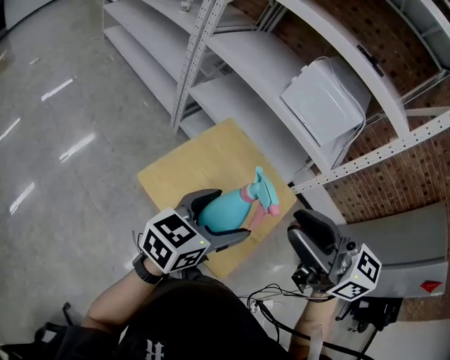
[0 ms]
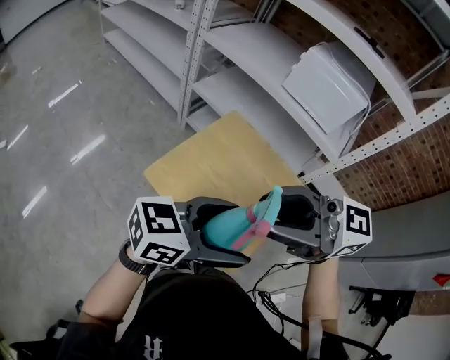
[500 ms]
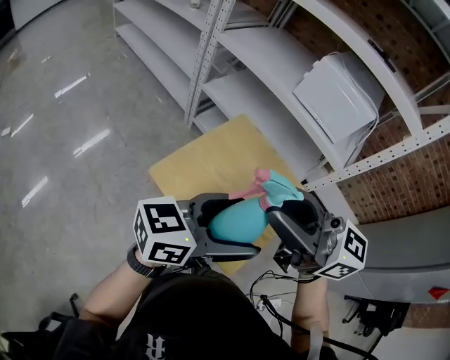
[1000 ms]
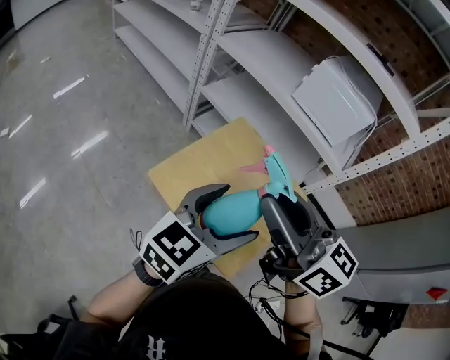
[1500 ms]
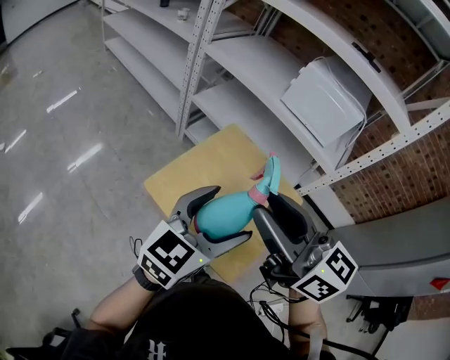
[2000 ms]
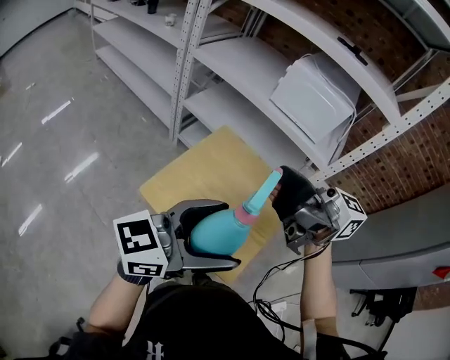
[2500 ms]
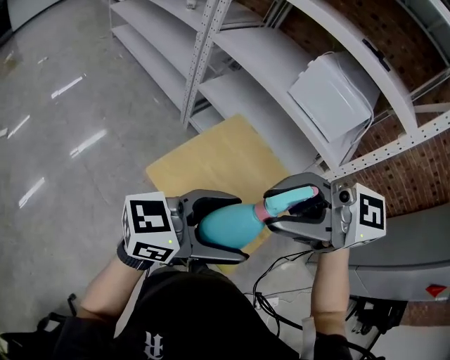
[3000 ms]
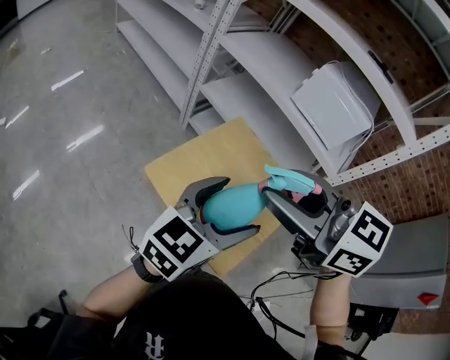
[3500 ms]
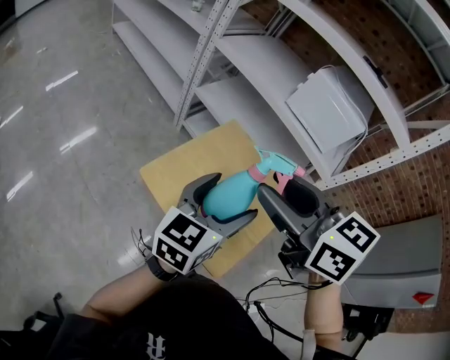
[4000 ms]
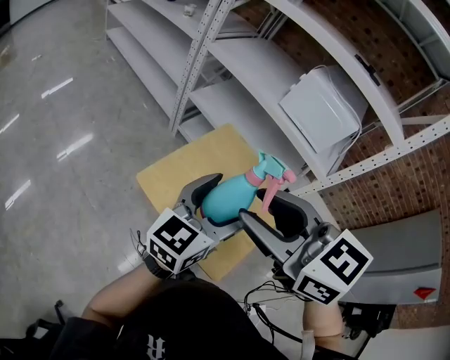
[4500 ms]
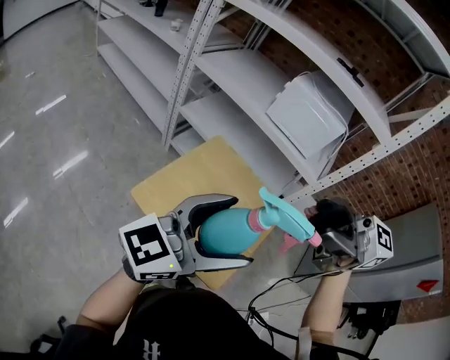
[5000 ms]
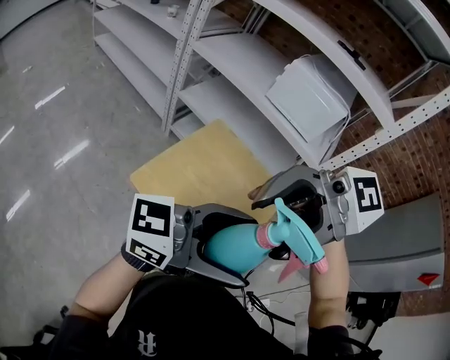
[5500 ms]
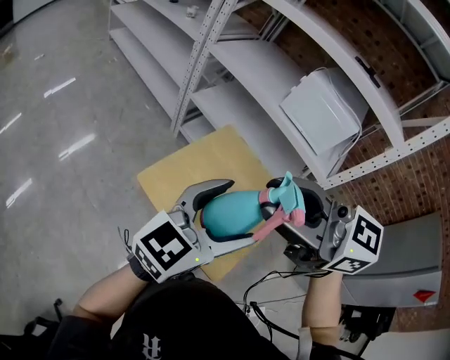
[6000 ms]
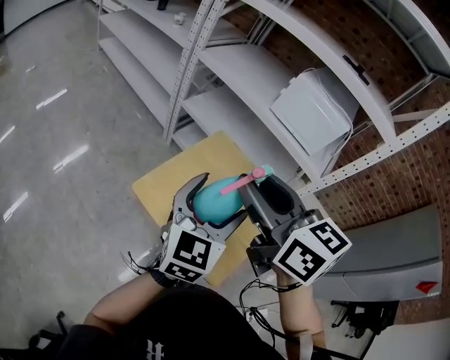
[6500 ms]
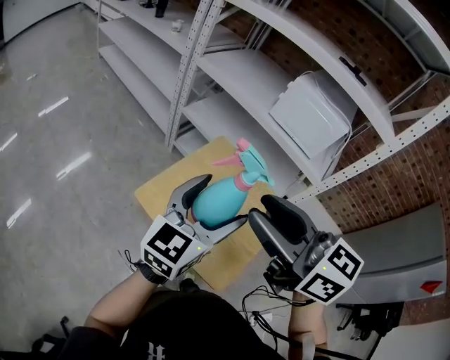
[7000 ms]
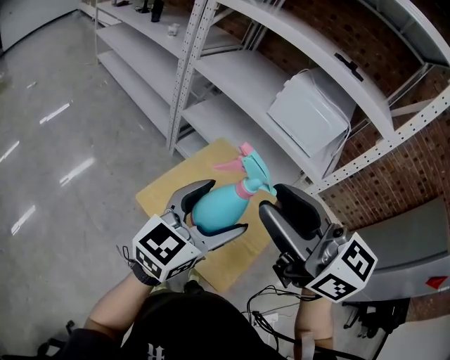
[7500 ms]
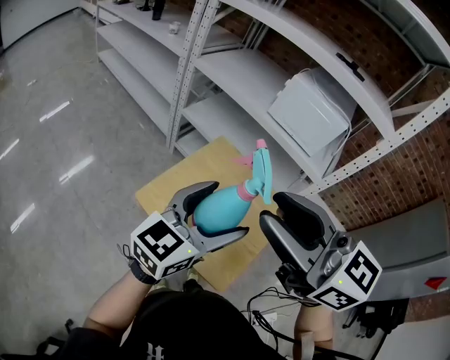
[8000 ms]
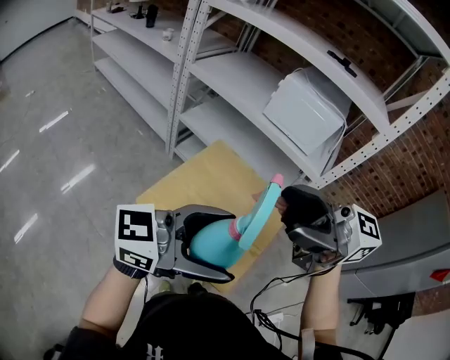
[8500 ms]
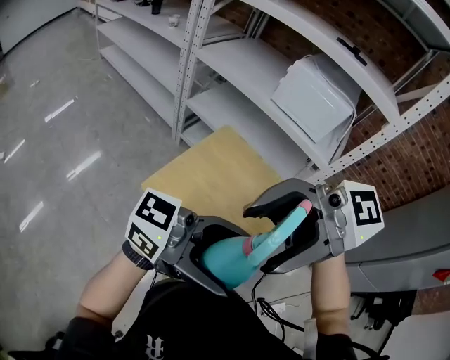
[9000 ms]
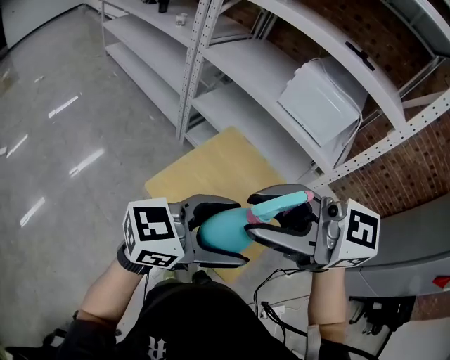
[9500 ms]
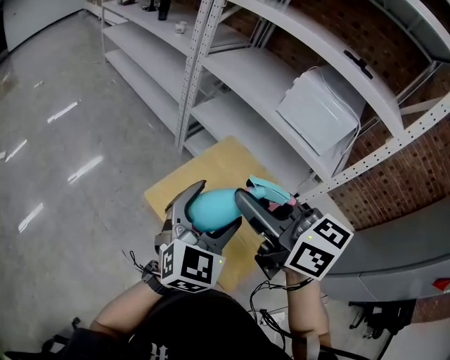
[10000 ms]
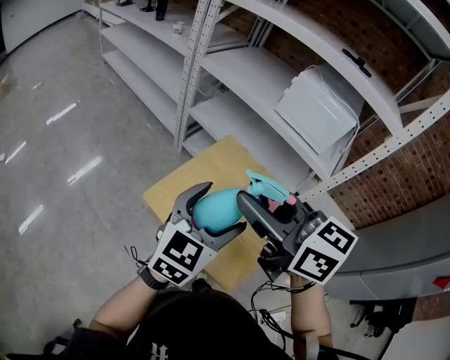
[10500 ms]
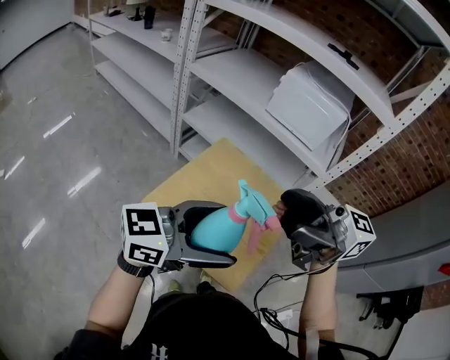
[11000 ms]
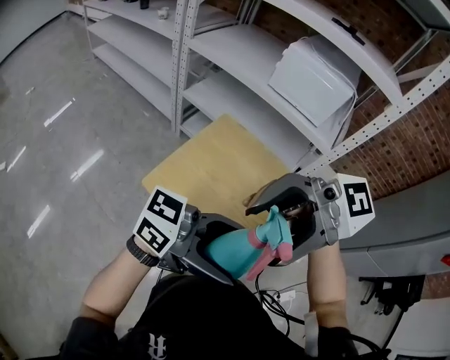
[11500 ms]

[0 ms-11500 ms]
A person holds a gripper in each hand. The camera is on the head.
0 ms to 2000 ms: The right gripper moves roughly 5 cm.
2000 ms to 4000 ms: The right gripper swivels about 20 degrees, and opens, then closes again.
4000 ms to 6000 ms: Both grippers travel together upward, roughly 5 cm. The right gripper rotates some 30 degrees. The left gripper changes its angle by about 20 degrees.
6000 ms to 7500 ms: The right gripper changes its angle by about 20 degrees.
7500 ms to 9500 ms: The right gripper turns by some 30 degrees, and opens, then closes again. Meanwhile the left gripper changes its angle by some 30 degrees.
9500 ms to 11500 ms: The right gripper changes its angle by roughly 30 degrees, and opens up, while the left gripper turns by roughly 40 degrees.

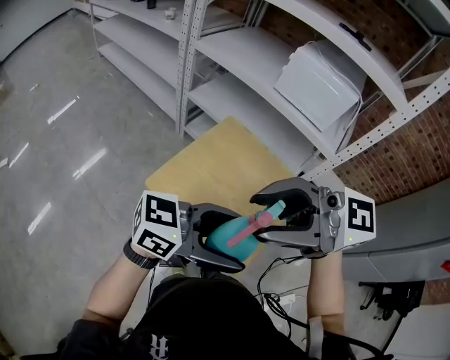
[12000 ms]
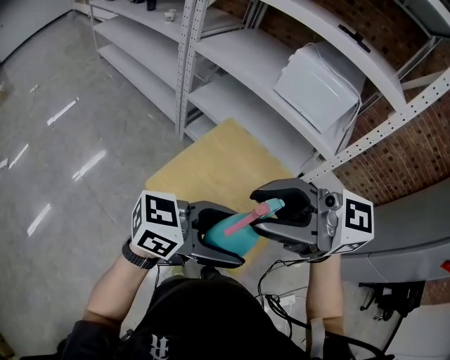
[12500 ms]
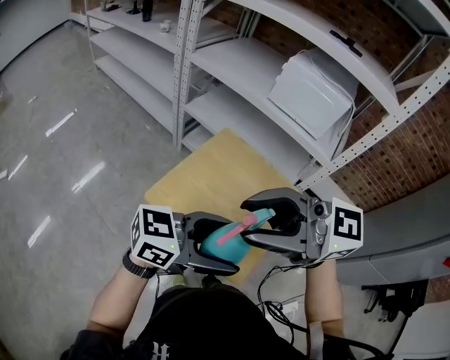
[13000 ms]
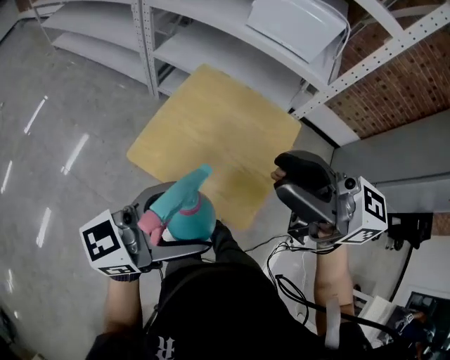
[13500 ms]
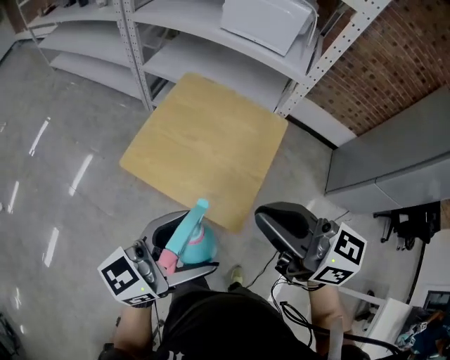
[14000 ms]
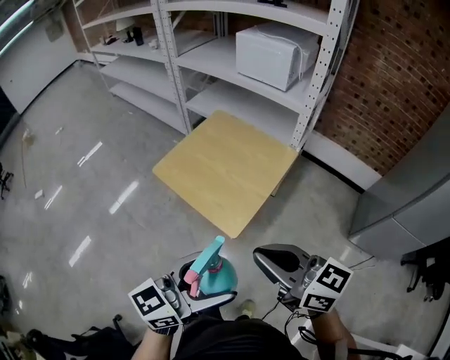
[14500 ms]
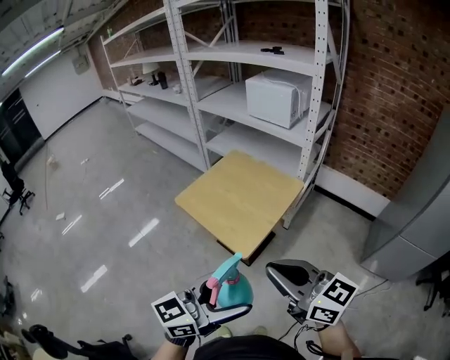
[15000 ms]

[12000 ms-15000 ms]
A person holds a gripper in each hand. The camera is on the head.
12000 ms to 13500 ms: The left gripper shifts by some 10 cm, and changes its angle by roughly 20 degrees. Meanwhile the right gripper moves approximately 5 cm, and swivels roughly 30 degrees.
13500 ms to 15000 ms: The pair of grippers is taken approximately 40 cm. The right gripper closes up.

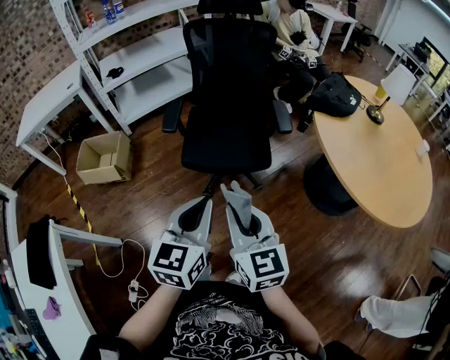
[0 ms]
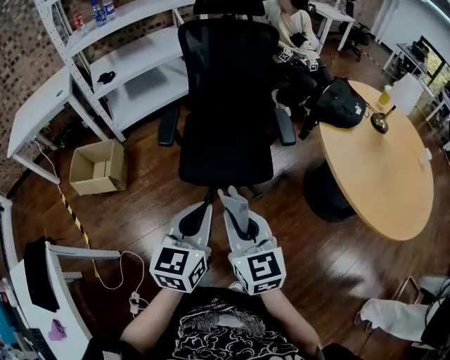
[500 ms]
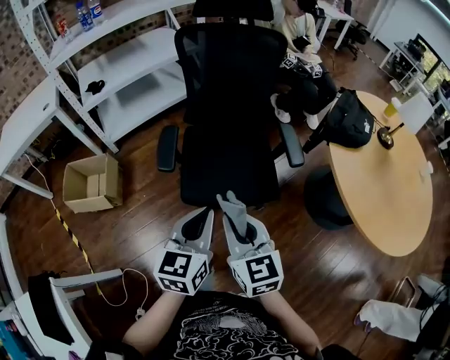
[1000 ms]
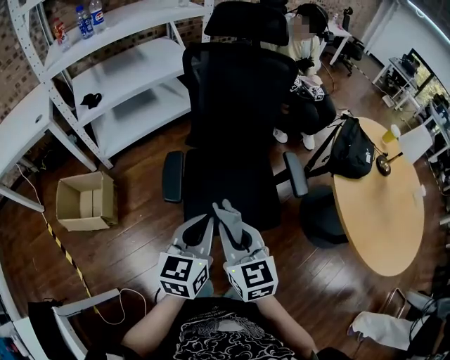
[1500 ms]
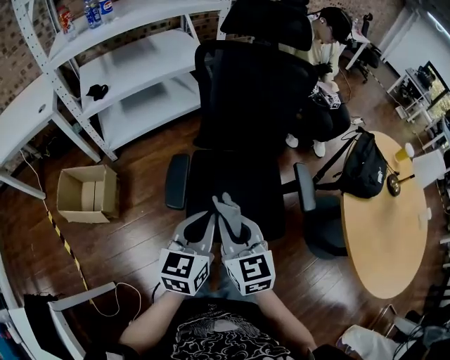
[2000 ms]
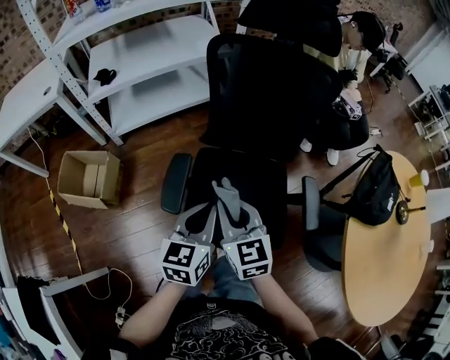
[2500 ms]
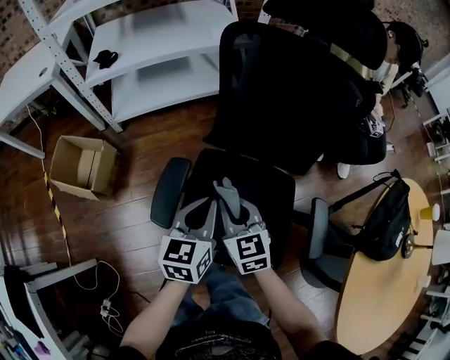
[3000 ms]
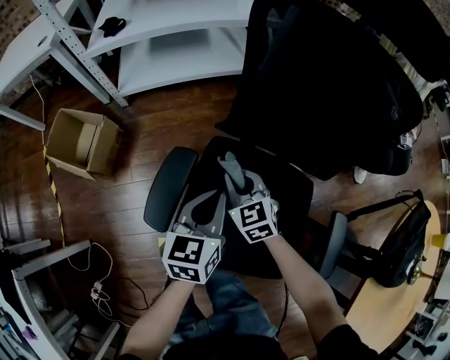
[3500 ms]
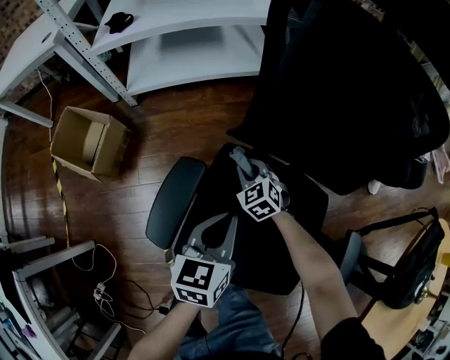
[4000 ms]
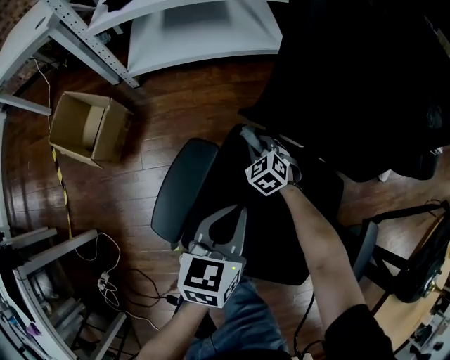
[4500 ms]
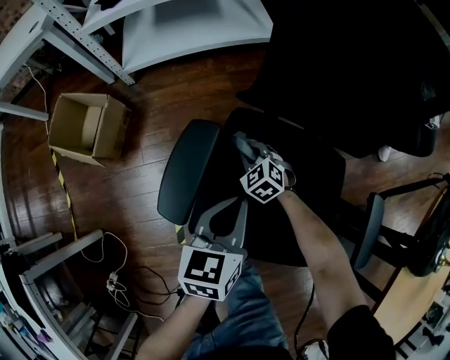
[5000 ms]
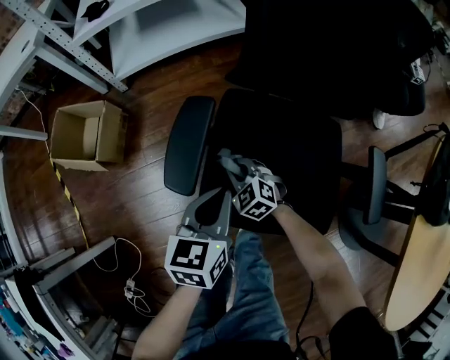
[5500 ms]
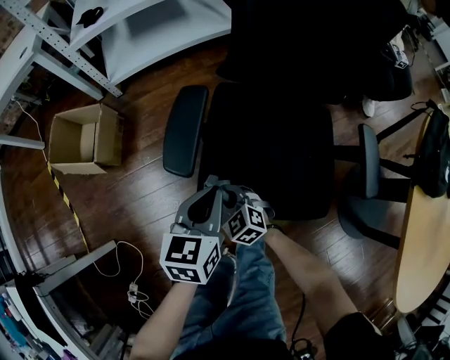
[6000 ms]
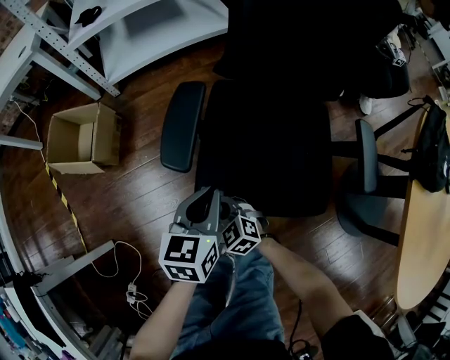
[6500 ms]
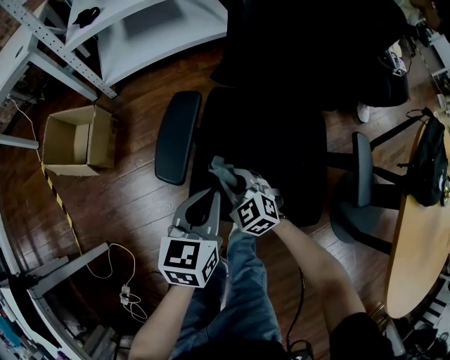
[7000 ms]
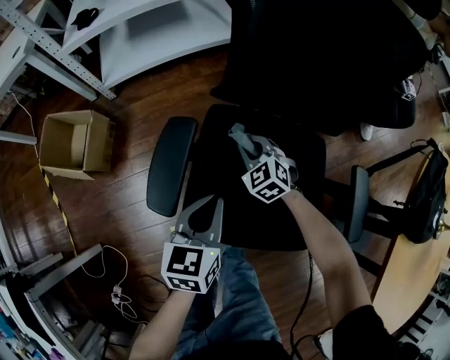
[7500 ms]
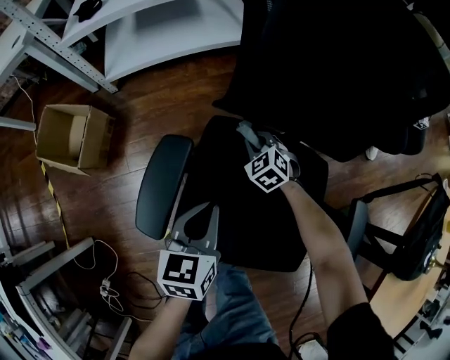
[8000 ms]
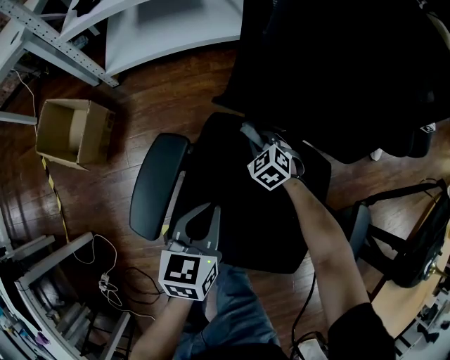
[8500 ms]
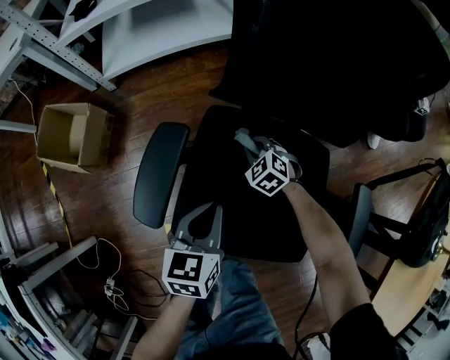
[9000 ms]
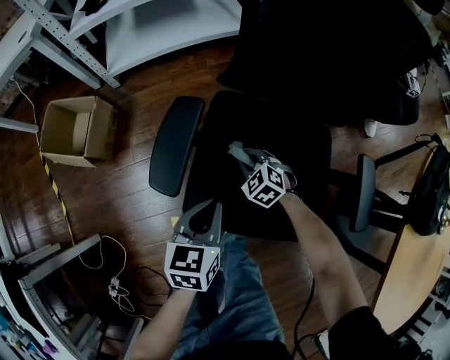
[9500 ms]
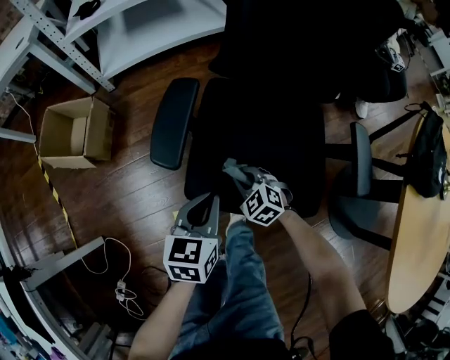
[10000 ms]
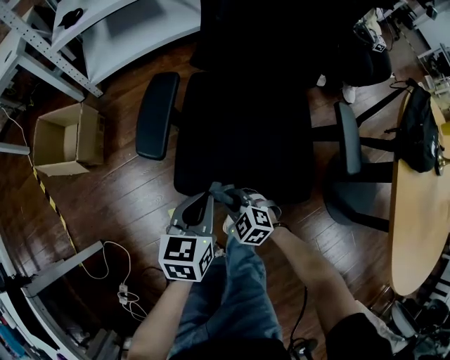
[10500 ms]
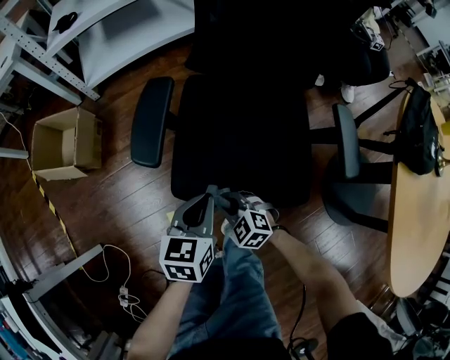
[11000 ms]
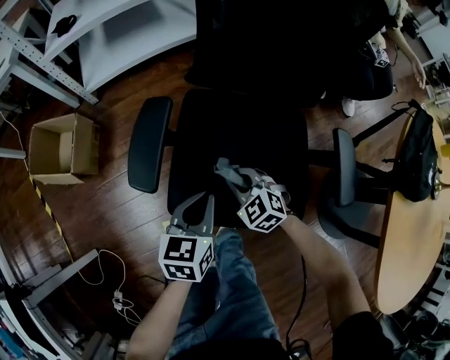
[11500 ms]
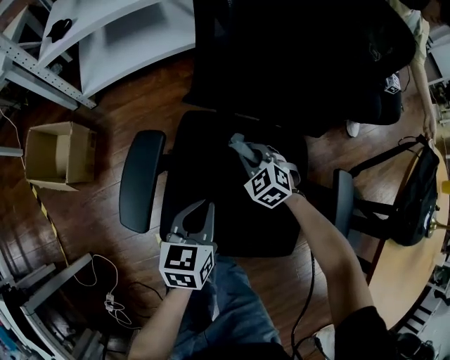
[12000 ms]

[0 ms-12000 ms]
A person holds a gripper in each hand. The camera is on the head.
0 ms to 2000 ms: The grippers both shift forward by about 40 cm.
2000 ms to 4000 ms: The right gripper heads downward and forward, covering roughly 50 cm, and rotates approximately 50 degrees, while the left gripper goes roughly 30 cm downward and forward, and turns by some 30 degrees.
4000 ms to 6000 ms: The right gripper shifts about 35 cm backward and to the left; the left gripper goes about 15 cm backward and to the left.
6000 ms to 8000 ms: The right gripper goes some 35 cm forward and to the right, while the left gripper heads forward and to the right, covering approximately 15 cm.
8000 ms to 10000 ms: The right gripper goes some 30 cm backward, while the left gripper is displaced backward by approximately 15 cm.
10000 ms to 12000 ms: The right gripper heads forward and to the right, covering about 25 cm, while the left gripper goes some 15 cm forward and to the right.
